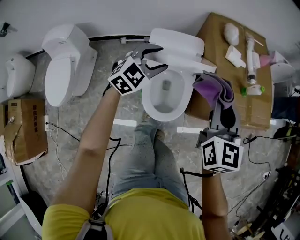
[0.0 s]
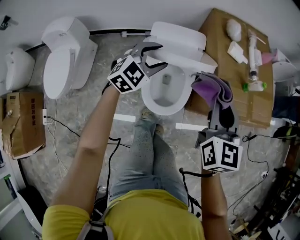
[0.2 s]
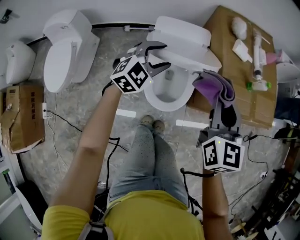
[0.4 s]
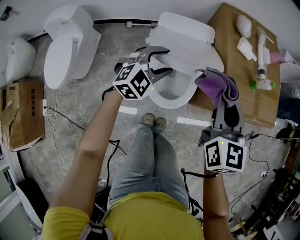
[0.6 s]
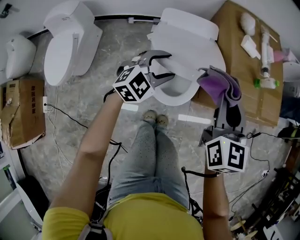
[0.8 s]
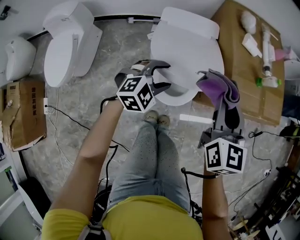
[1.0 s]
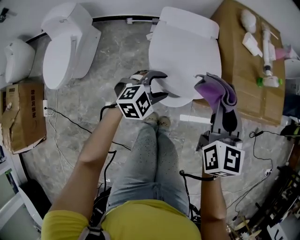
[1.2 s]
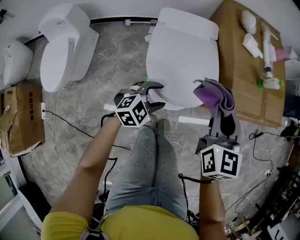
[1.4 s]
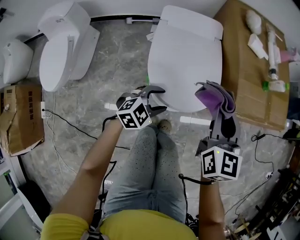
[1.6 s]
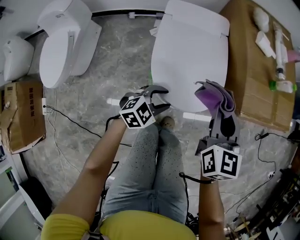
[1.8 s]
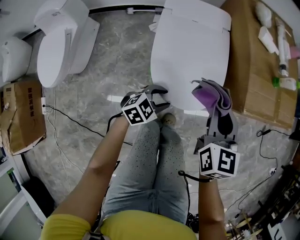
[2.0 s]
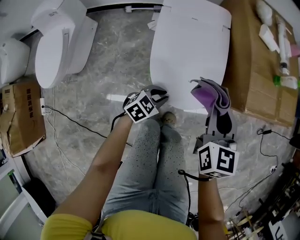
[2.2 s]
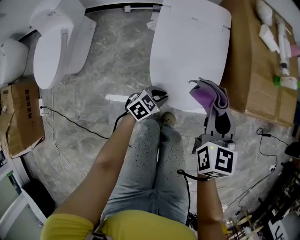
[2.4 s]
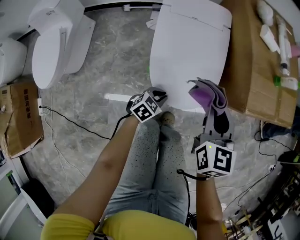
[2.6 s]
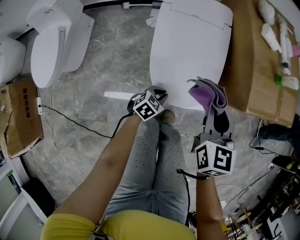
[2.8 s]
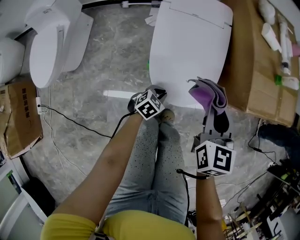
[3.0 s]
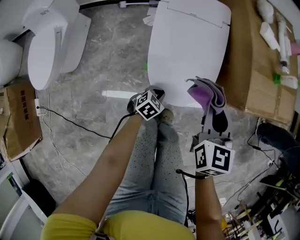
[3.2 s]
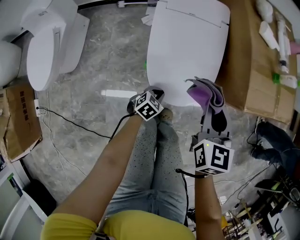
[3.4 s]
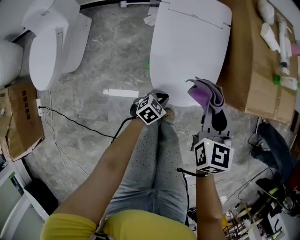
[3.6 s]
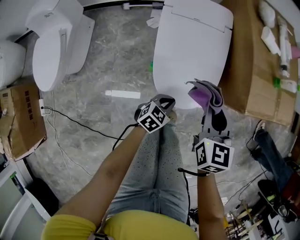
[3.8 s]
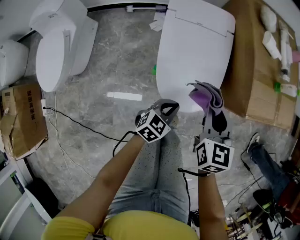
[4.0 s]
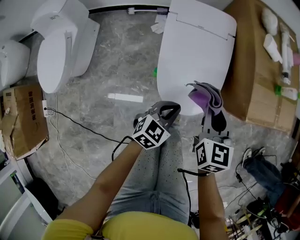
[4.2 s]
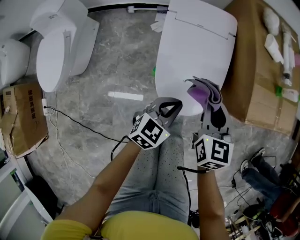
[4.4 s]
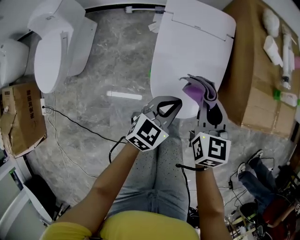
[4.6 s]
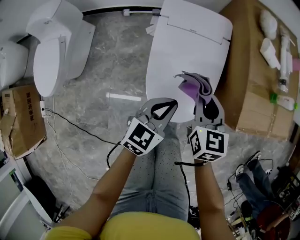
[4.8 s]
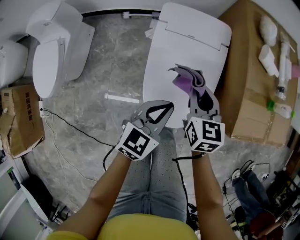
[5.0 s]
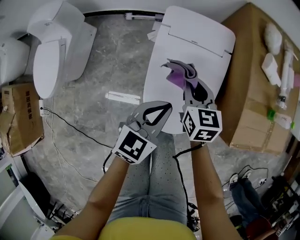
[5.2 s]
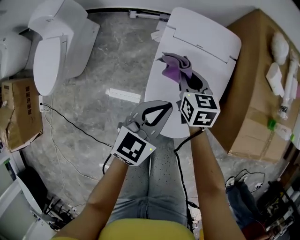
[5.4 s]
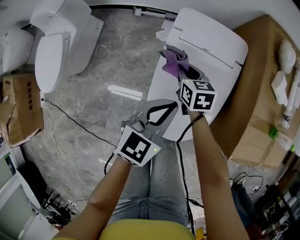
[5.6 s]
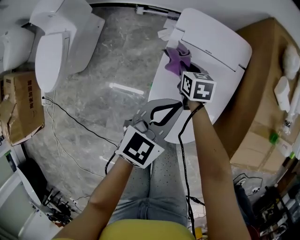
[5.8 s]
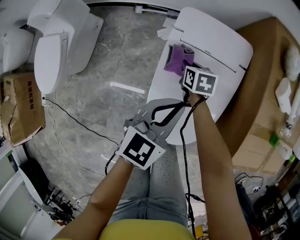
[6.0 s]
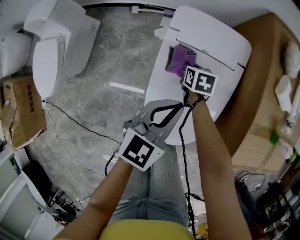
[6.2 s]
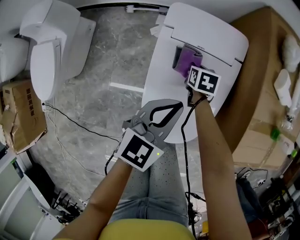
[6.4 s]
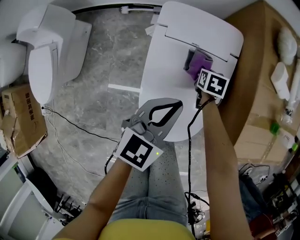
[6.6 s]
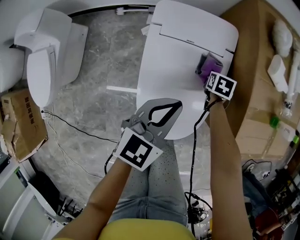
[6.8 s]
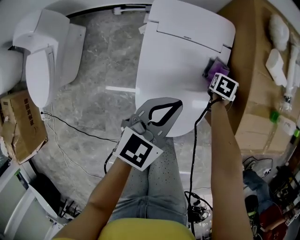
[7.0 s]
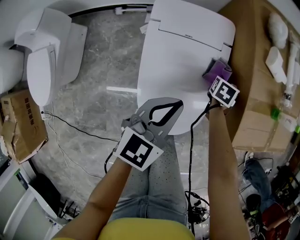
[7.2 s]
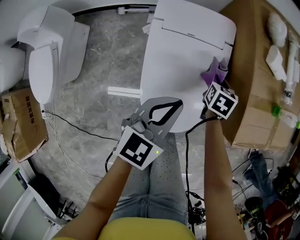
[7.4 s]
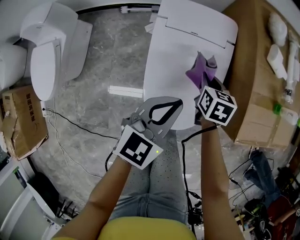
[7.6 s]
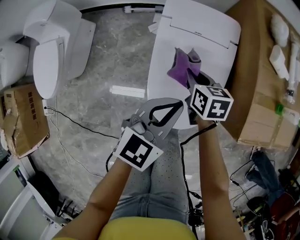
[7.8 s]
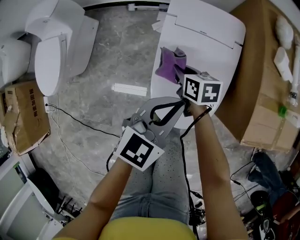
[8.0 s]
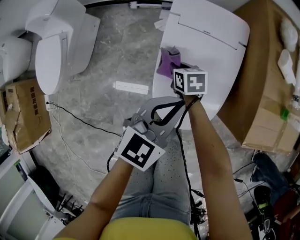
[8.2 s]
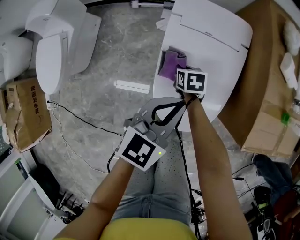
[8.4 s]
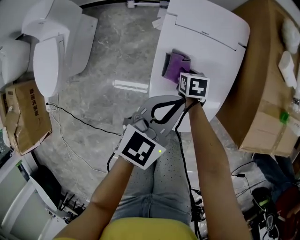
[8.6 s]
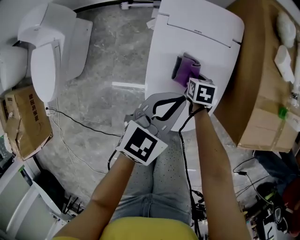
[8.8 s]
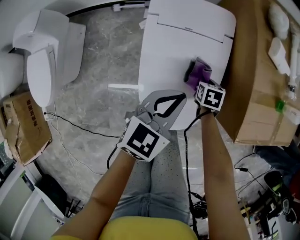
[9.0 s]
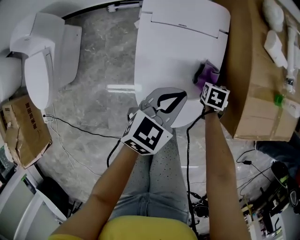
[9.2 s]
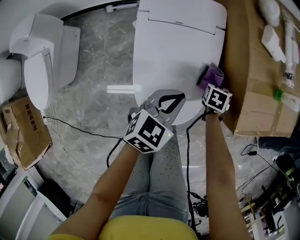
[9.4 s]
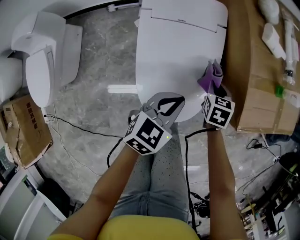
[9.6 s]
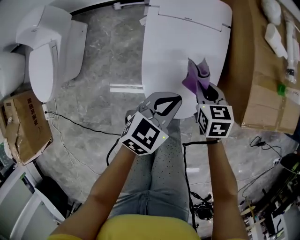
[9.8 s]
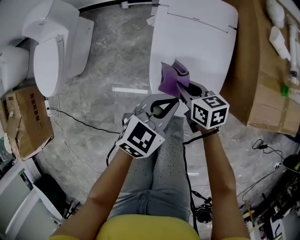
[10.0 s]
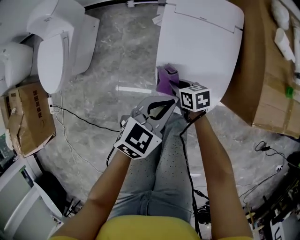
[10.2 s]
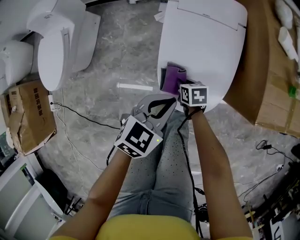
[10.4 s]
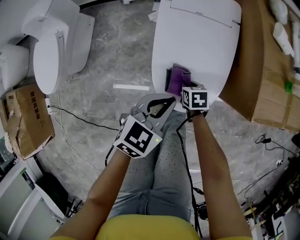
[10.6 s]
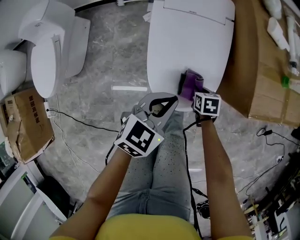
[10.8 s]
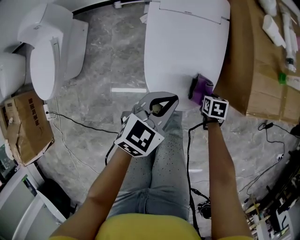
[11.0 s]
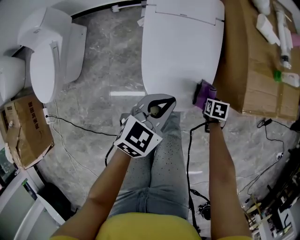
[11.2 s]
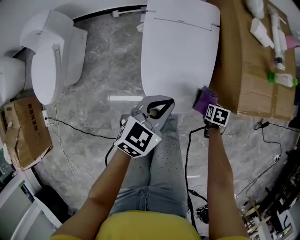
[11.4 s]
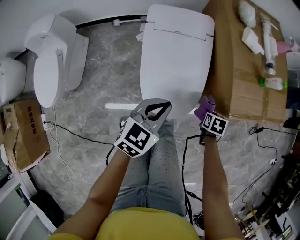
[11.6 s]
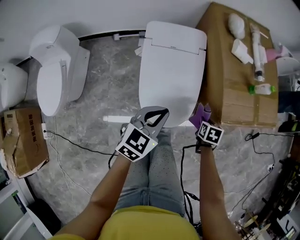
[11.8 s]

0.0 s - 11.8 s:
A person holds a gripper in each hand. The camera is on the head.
0.0 s - 1.4 s: The right gripper is displaced downward and backward by some 15 cm. The left gripper goes approximately 25 cm downward and backward.
1.4 s - 3.0 s: The left gripper travels downward by roughly 20 cm, changes its angle by approximately 30 degrees, and closes. The right gripper moves downward, approximately 15 cm.
3.0 s - 4.4 s: The right gripper changes place by approximately 5 cm, while the left gripper heads upward, covering about 20 cm, and changes its angle by some 20 degrees.
4.4 s - 6.0 s: The right gripper travels forward, downward and to the left by approximately 35 cm, and rotates approximately 30 degrees; the left gripper moves forward, roughly 20 cm.
6.0 s - 7.4 s: The left gripper moves about 5 cm. The right gripper moves approximately 25 cm, and rotates roughly 30 degrees.
7.4 s - 8.8 s: The right gripper rotates roughly 20 degrees.
8.8 s - 10.4 s: The right gripper travels upward and back again, roughly 15 cm each way; the left gripper moves approximately 15 cm.
10.4 s - 11.8 s: The right gripper changes place by roughly 30 cm, and changes its angle by about 30 degrees; the left gripper moves upward, about 10 cm.

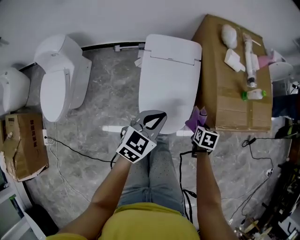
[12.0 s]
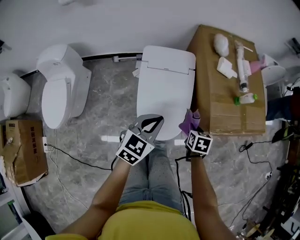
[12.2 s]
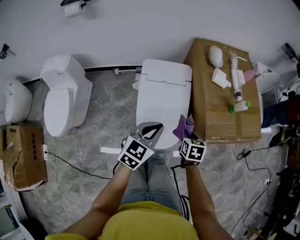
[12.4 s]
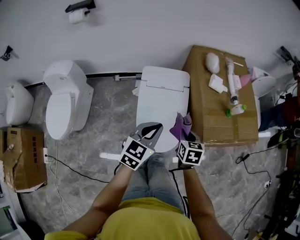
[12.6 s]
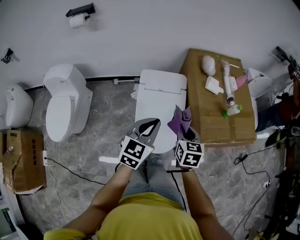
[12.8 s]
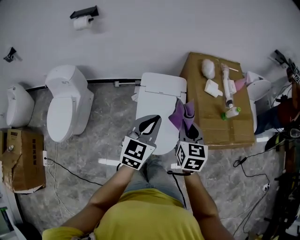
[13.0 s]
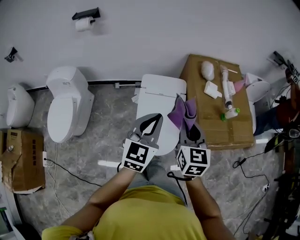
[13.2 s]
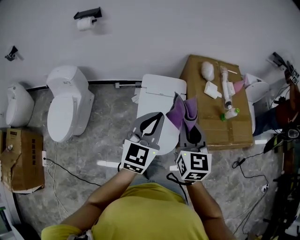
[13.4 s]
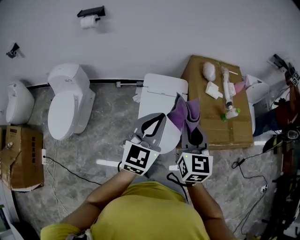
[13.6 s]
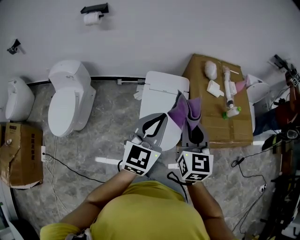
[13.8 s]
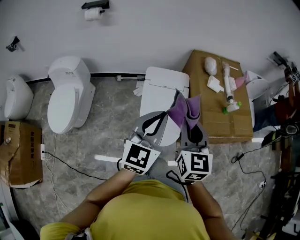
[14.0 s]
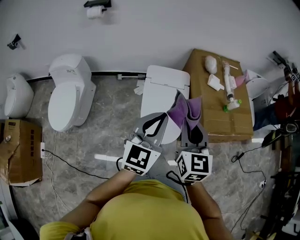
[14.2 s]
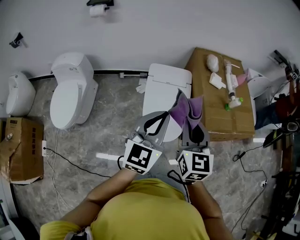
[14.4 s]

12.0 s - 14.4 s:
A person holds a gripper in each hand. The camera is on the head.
12.0 s - 13.2 s: The right gripper moves upward, roughly 35 cm, and tilts its fingers roughly 40 degrees upward, while the left gripper is displaced upward by approximately 20 cm, and changes its angle by approximately 30 degrees.
13.2 s - 14.4 s: Both grippers travel together backward, roughly 10 cm.

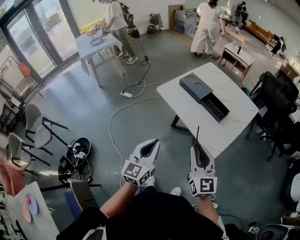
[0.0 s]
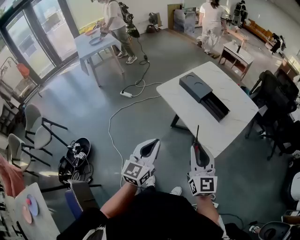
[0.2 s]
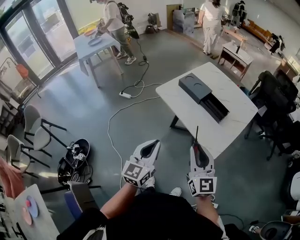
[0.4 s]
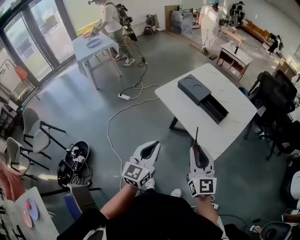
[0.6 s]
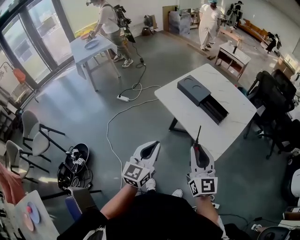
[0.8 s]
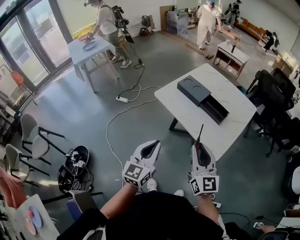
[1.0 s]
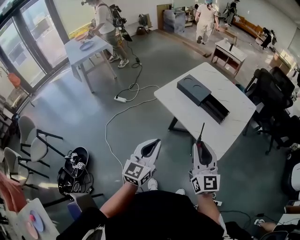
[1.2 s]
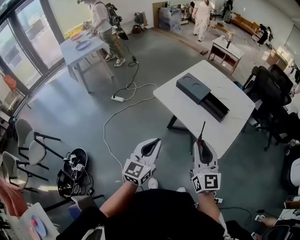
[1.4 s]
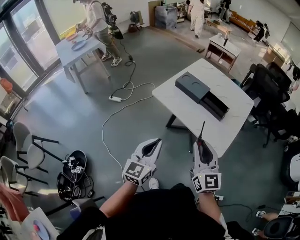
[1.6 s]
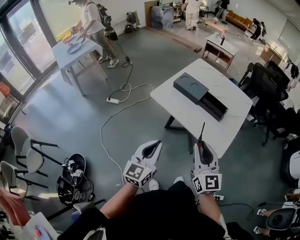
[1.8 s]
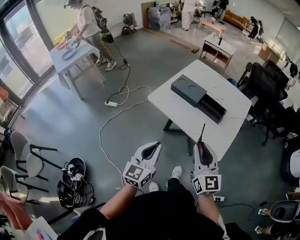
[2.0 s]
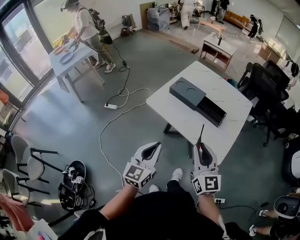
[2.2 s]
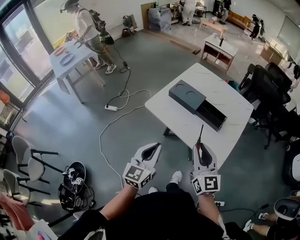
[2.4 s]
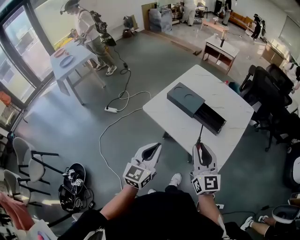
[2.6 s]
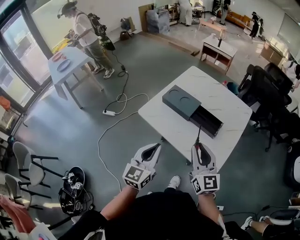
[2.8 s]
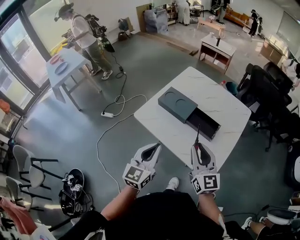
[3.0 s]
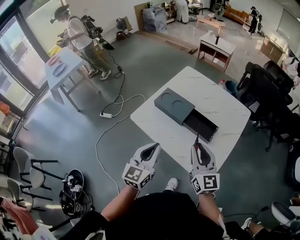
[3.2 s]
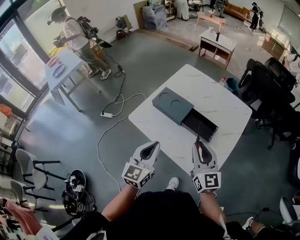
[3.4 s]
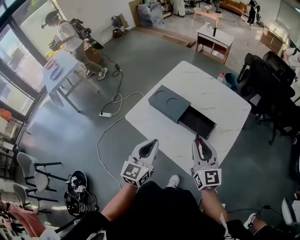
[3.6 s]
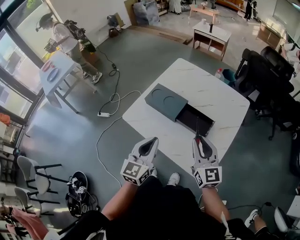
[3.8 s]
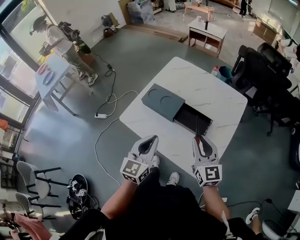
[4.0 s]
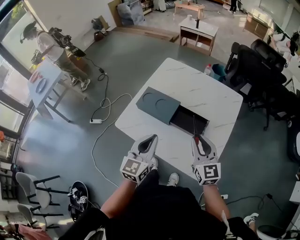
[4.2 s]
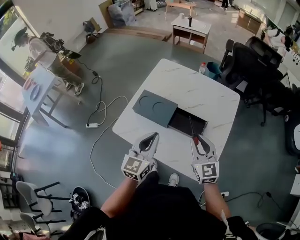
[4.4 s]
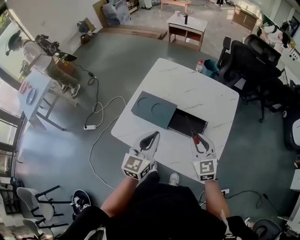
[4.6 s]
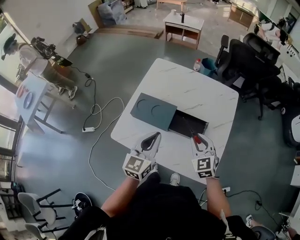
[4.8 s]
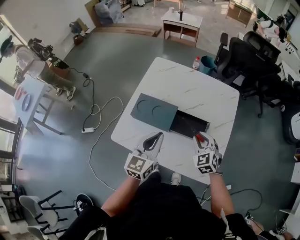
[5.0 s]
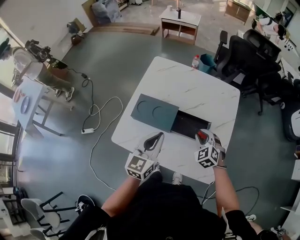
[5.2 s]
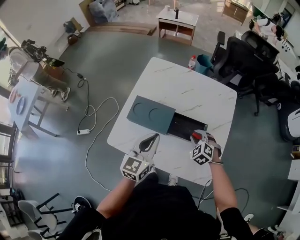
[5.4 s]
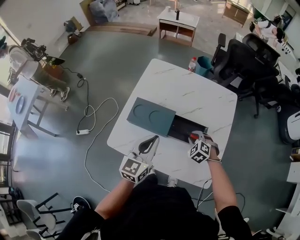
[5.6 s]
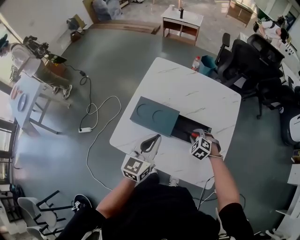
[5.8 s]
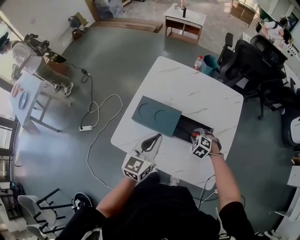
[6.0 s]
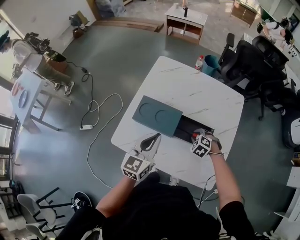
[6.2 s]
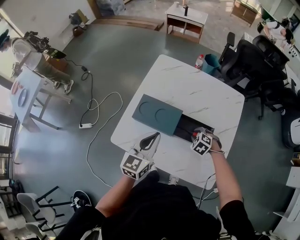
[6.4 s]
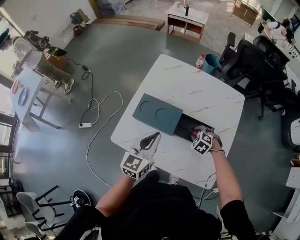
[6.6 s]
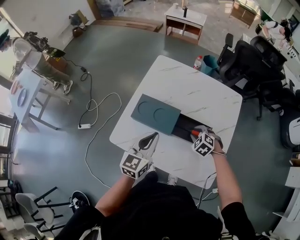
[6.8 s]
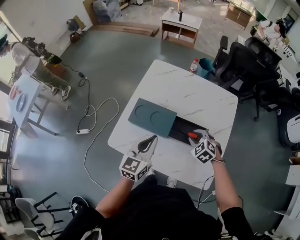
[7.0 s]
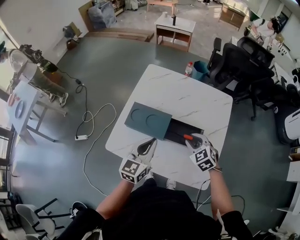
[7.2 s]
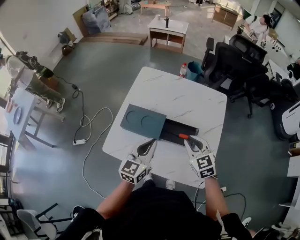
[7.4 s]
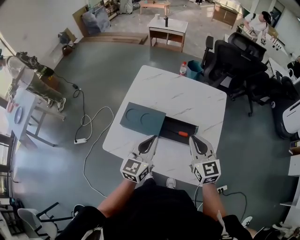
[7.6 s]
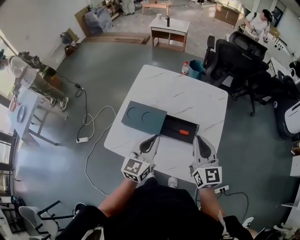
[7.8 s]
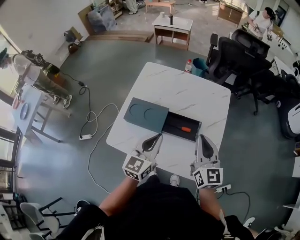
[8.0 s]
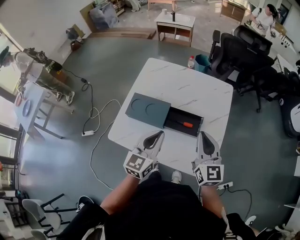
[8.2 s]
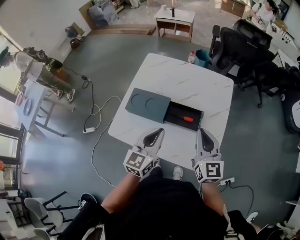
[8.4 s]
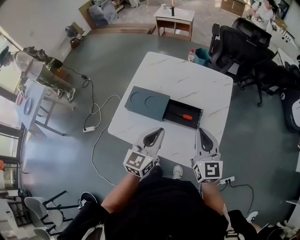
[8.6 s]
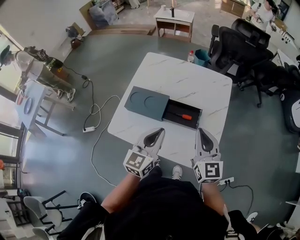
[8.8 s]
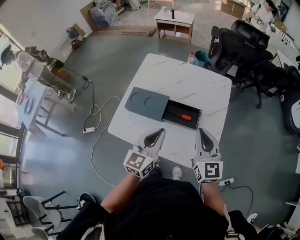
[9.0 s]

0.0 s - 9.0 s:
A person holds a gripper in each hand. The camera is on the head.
0.0 s - 1.6 s: The left gripper moves forward and to the left, roughly 10 cm; the right gripper heads to the left, covering roughly 5 cm.
1.6 s - 3.0 s: The two grippers go some 20 cm forward and to the right.
3.0 s - 4.4 s: The right gripper heads forward, to the right and downward, covering approximately 15 cm. Meanwhile the left gripper heads forward and to the right, covering roughly 15 cm.
4.4 s - 6.0 s: The right gripper travels downward and forward by roughly 25 cm, and tilts its fingers about 50 degrees downward. The left gripper heads forward, covering some 10 cm.
6.0 s - 7.6 s: The left gripper changes place by about 5 cm. The right gripper goes approximately 25 cm upward, and tips its fingers upward by about 50 degrees.
7.6 s - 9.0 s: The grippers both shift backward by approximately 5 cm.
